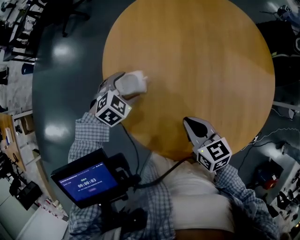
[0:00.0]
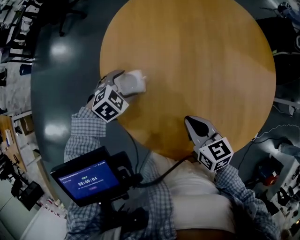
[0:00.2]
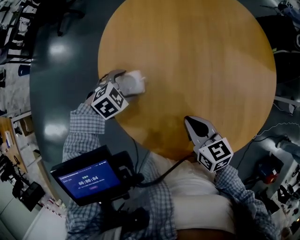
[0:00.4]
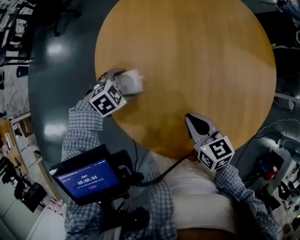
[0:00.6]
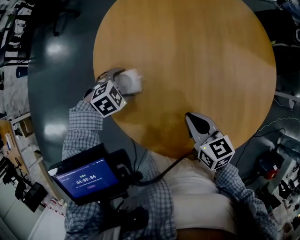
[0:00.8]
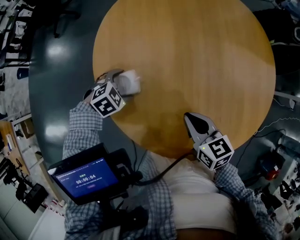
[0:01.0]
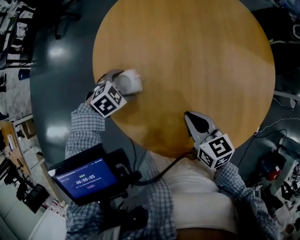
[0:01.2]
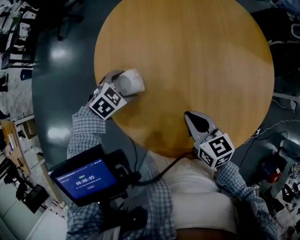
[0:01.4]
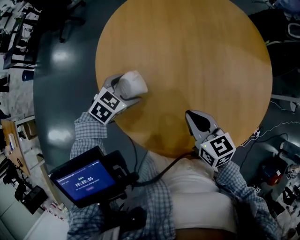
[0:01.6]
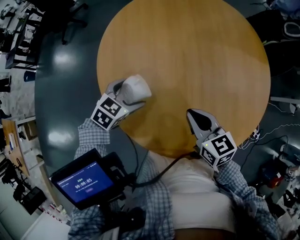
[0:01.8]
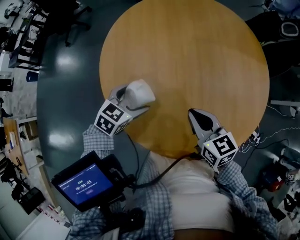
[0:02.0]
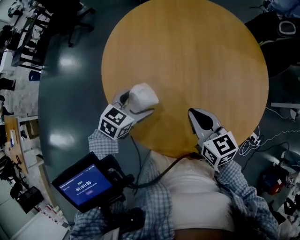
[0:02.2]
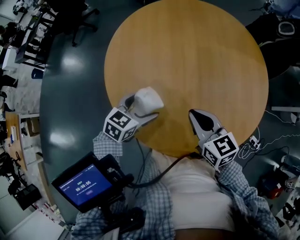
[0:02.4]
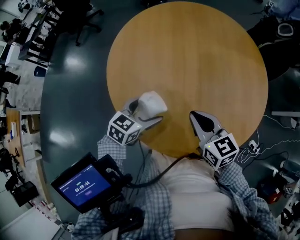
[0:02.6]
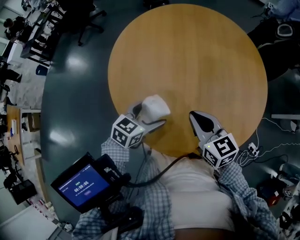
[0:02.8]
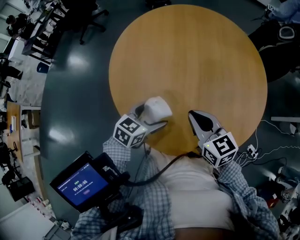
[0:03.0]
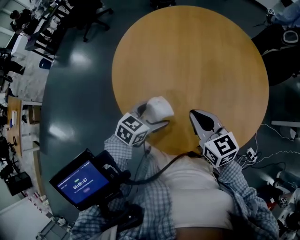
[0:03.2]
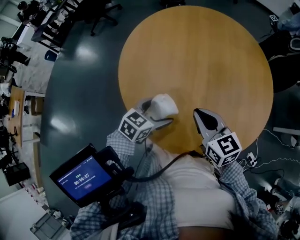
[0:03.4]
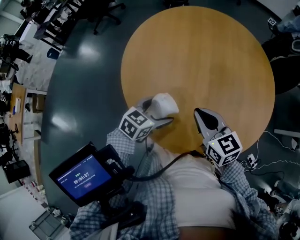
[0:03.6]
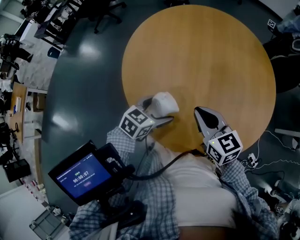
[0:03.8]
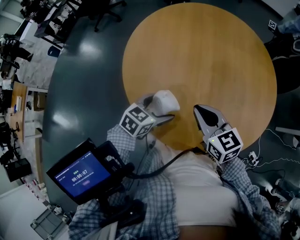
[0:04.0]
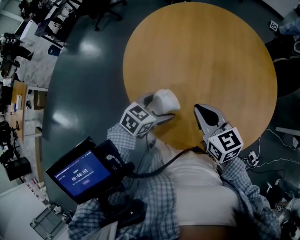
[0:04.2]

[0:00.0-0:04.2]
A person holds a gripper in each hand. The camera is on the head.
0:00.0 to 0:01.4: There are only small adjustments of the grippers.
0:01.4 to 0:02.8: The right gripper travels upward by about 5 cm. The left gripper moves to the right, backward and upward, about 20 cm, and changes its angle by some 40 degrees.
0:02.8 to 0:04.2: The grippers make only small movements.

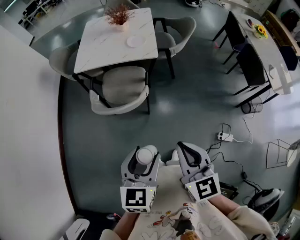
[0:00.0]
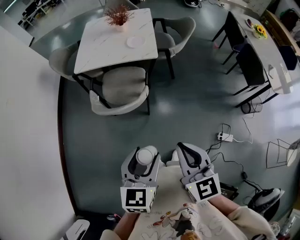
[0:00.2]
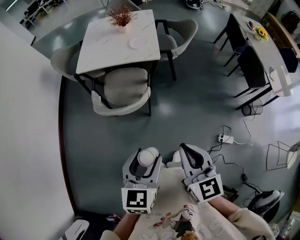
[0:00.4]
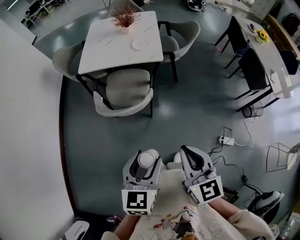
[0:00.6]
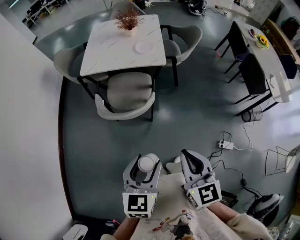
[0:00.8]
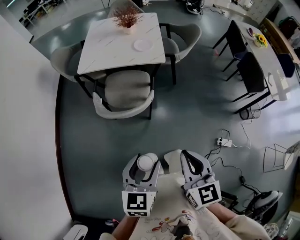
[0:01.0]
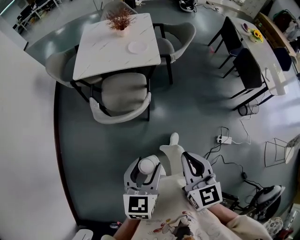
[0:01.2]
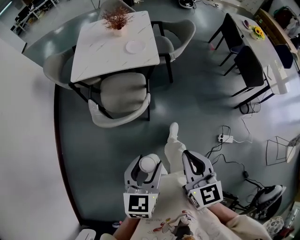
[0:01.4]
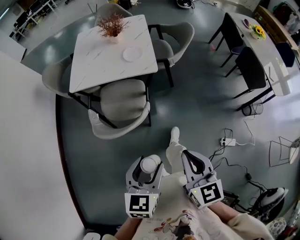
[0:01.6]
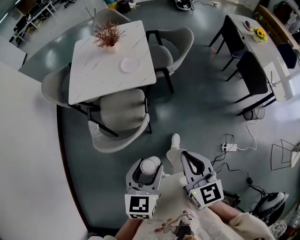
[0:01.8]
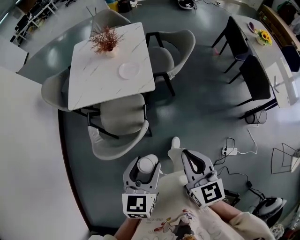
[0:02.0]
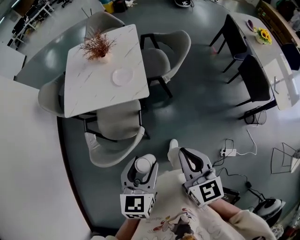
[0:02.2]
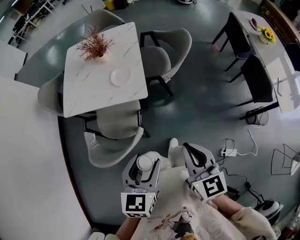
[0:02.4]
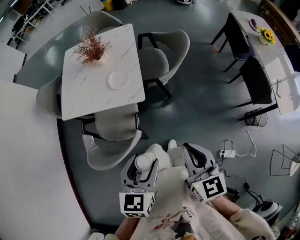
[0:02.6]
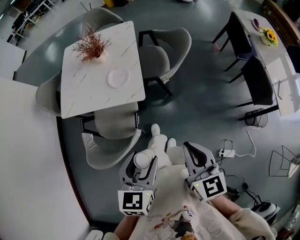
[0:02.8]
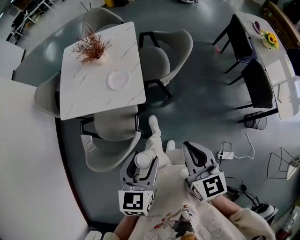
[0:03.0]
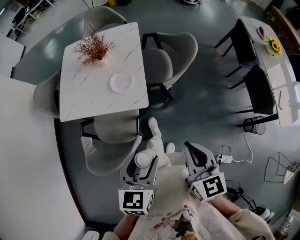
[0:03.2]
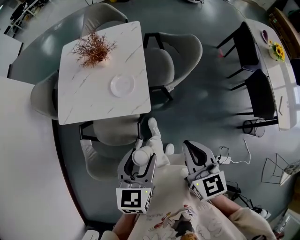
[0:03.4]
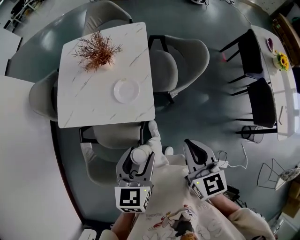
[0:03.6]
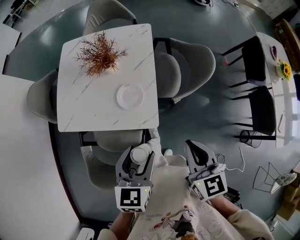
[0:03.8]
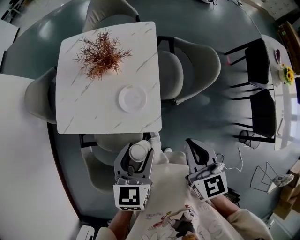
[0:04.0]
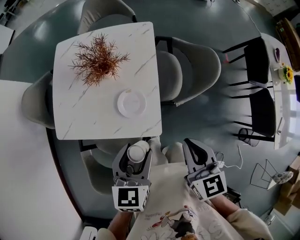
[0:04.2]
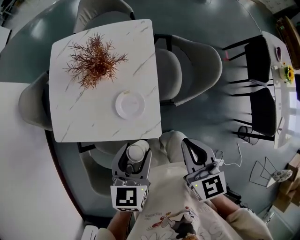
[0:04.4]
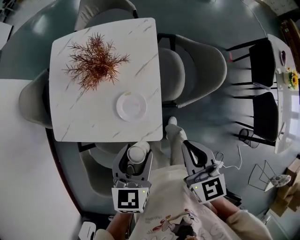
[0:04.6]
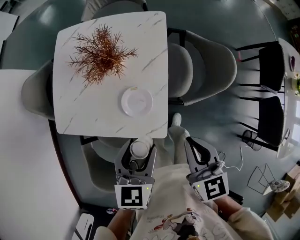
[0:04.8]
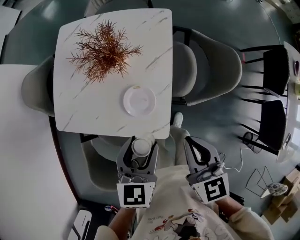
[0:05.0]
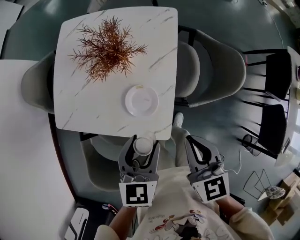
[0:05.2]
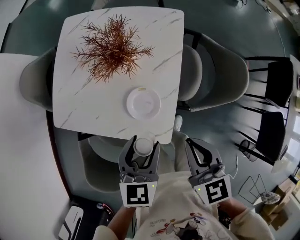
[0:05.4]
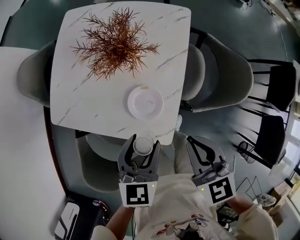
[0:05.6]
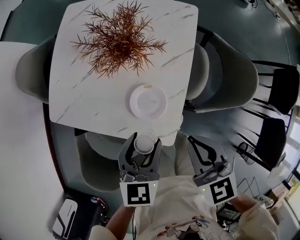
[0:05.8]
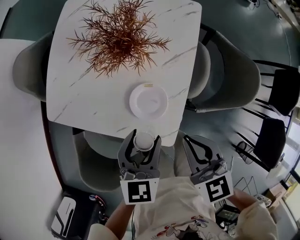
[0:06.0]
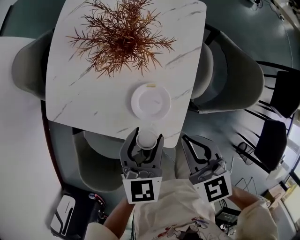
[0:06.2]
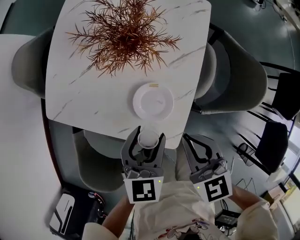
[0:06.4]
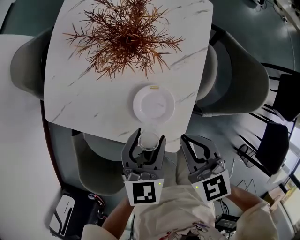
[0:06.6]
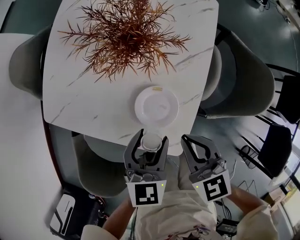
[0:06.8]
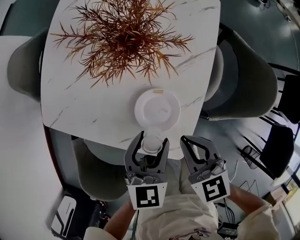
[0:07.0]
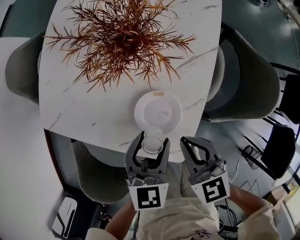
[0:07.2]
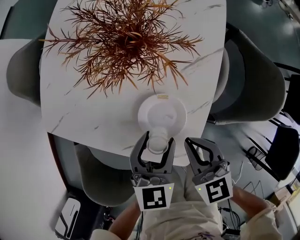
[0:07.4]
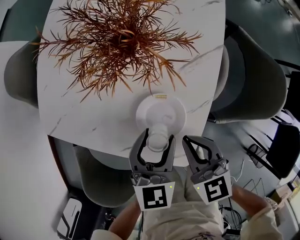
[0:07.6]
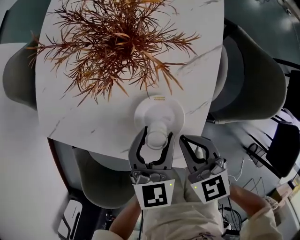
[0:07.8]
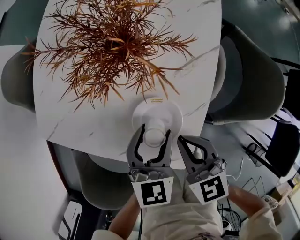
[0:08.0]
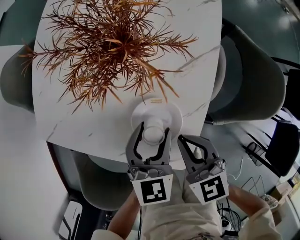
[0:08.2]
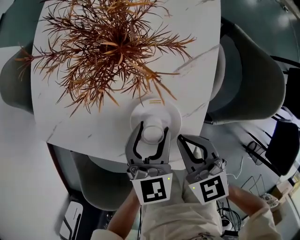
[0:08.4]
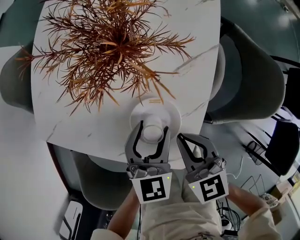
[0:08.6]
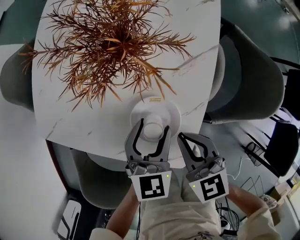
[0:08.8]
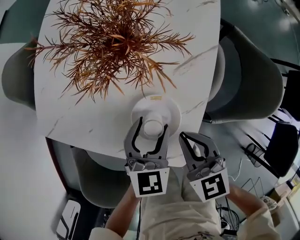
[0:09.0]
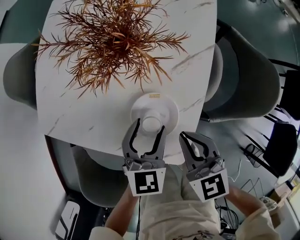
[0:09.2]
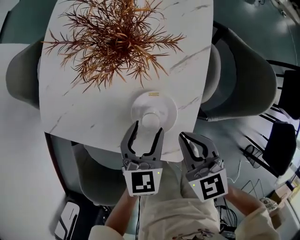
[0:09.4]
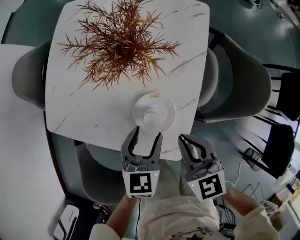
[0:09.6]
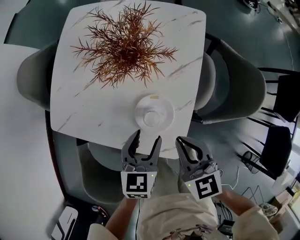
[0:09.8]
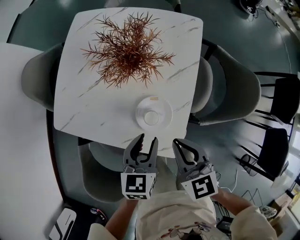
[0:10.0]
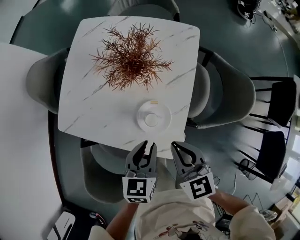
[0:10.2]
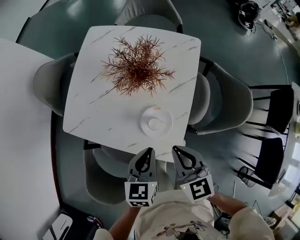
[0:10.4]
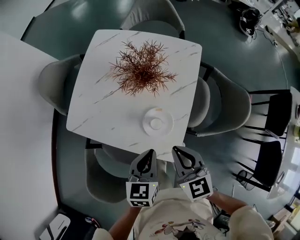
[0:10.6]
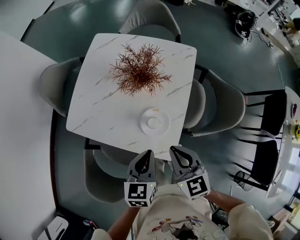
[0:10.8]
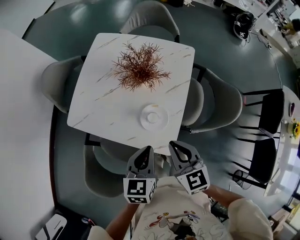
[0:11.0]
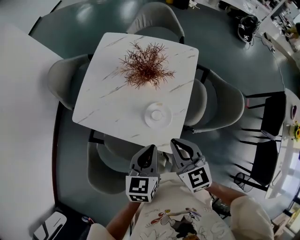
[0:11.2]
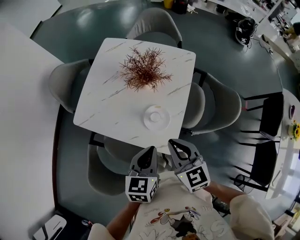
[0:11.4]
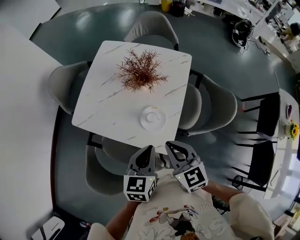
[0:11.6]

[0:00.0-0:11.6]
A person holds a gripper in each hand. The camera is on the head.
0:00.0 to 0:01.4: The left gripper moves about 5 cm.
0:01.4 to 0:02.8: The grippers both shift forward and to the right by some 35 cm.
0:02.8 to 0:04.4: The two grippers go approximately 30 cm forward.
0:04.4 to 0:05.8: The right gripper is displaced forward, downward and to the left by about 10 cm, and swivels approximately 20 degrees; the left gripper travels downward and forward by roughly 10 cm.
0:05.8 to 0:07.2: The two grippers go approximately 10 cm downward.
0:07.2 to 0:08.8: The left gripper changes place by approximately 5 cm.
0:08.8 to 0:10.2: The left gripper shifts roughly 15 cm upward and backward, and closes its fingers. Meanwhile the right gripper heads upward, covering approximately 15 cm.
0:10.2 to 0:11.6: Both grippers move upward and backward, some 10 cm.

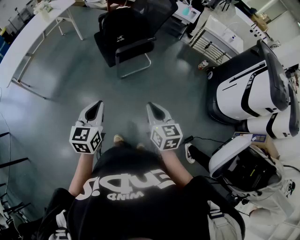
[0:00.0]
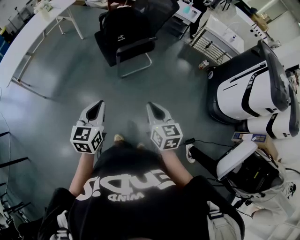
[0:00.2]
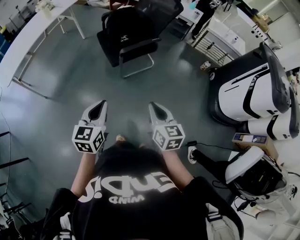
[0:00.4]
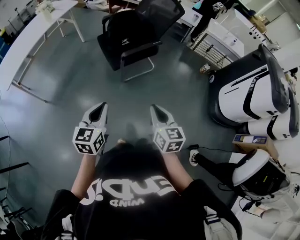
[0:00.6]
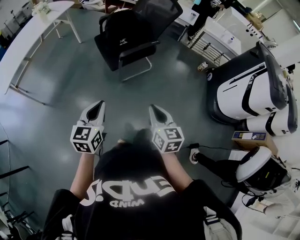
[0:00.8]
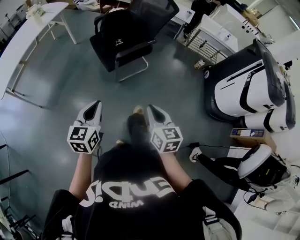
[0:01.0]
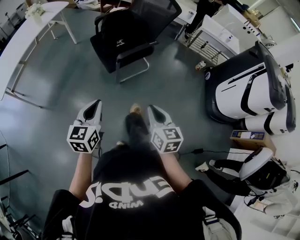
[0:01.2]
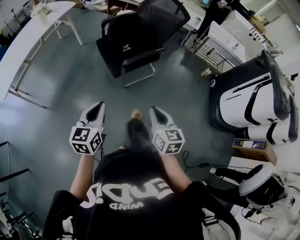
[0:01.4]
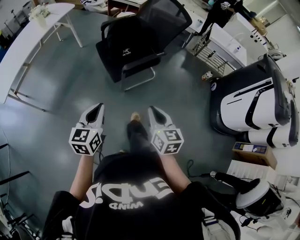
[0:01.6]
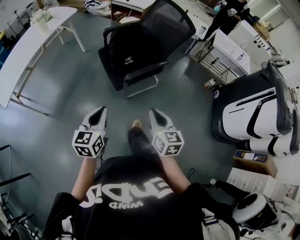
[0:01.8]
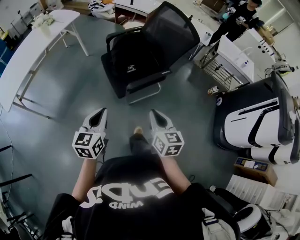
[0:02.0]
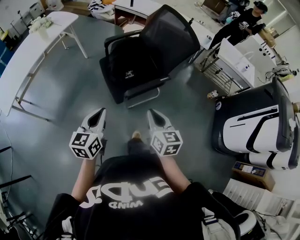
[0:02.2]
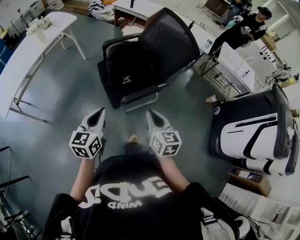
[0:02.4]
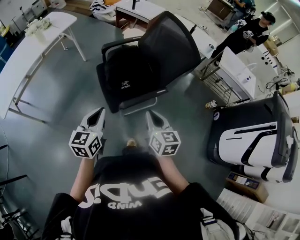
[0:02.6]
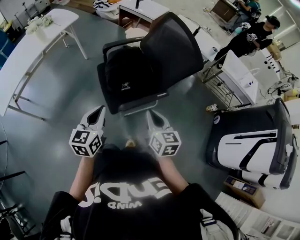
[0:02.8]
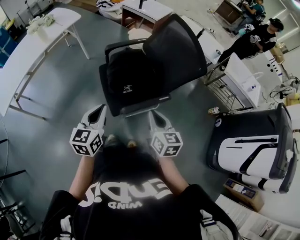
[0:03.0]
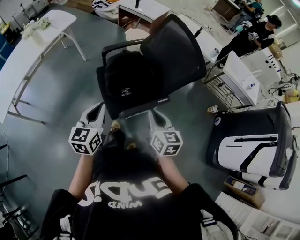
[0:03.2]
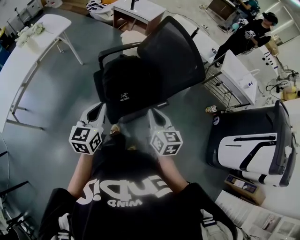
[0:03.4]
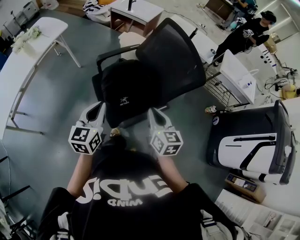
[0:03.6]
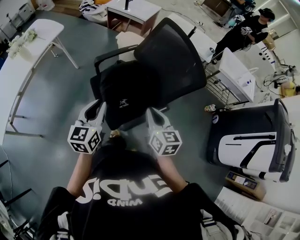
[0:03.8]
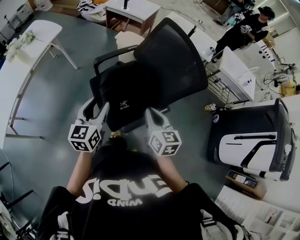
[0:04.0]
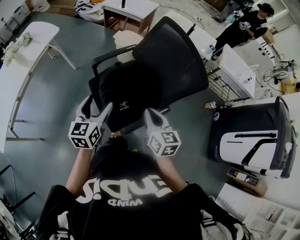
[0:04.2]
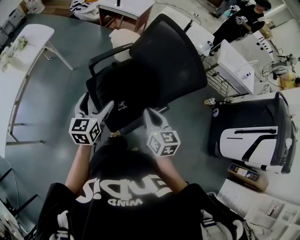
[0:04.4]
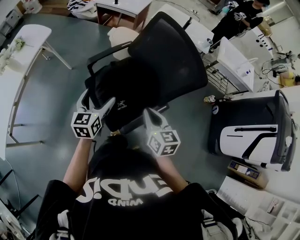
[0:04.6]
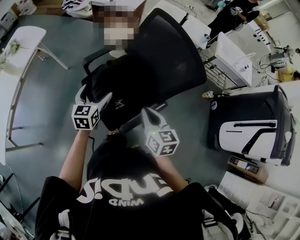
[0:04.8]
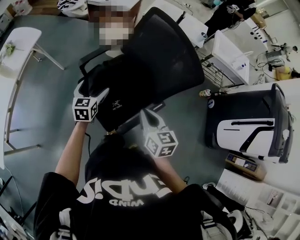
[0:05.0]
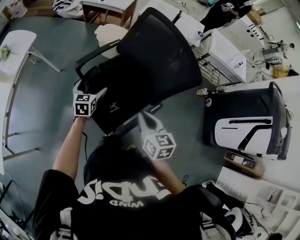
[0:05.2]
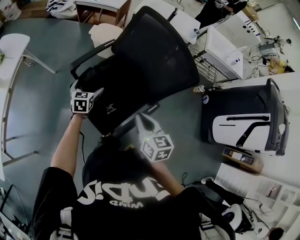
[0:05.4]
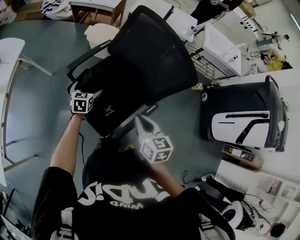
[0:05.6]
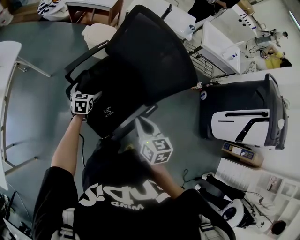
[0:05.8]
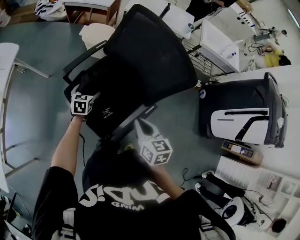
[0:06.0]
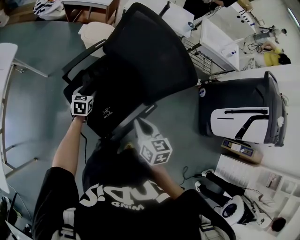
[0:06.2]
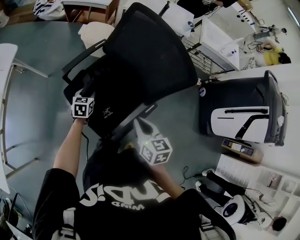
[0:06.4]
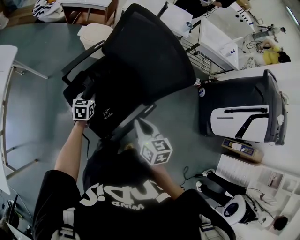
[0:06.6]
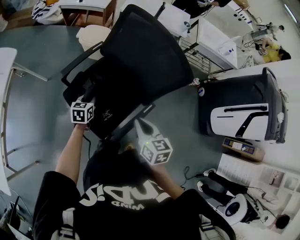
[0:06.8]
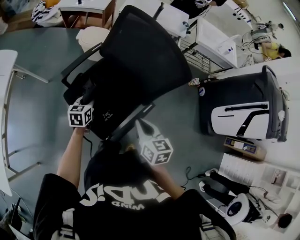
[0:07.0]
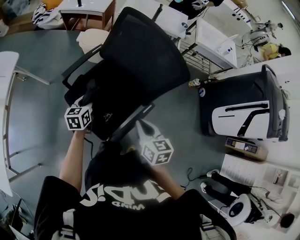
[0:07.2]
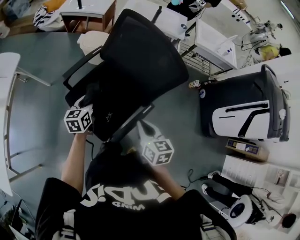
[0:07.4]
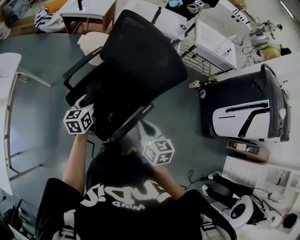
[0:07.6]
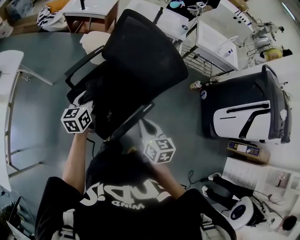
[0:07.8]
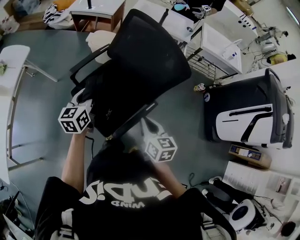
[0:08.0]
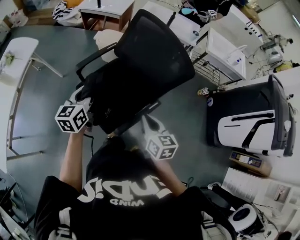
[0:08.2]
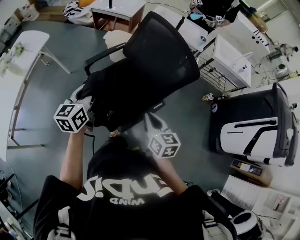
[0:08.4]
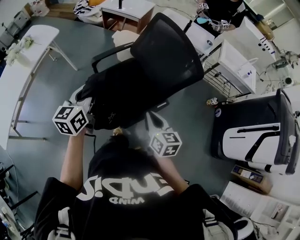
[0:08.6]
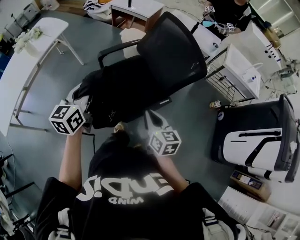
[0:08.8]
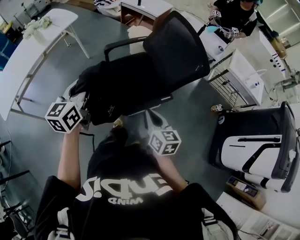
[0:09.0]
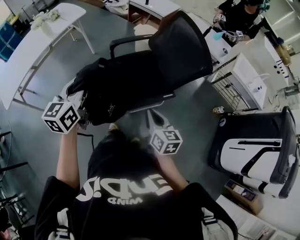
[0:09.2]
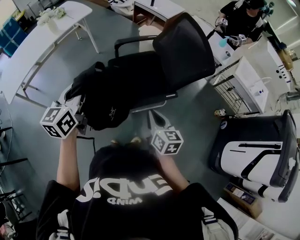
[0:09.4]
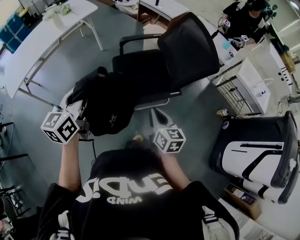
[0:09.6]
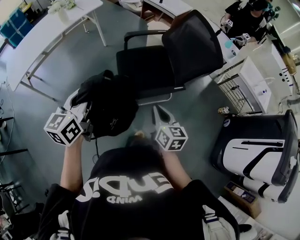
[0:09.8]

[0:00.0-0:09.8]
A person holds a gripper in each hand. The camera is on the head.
0:00.0 to 0:01.4: The two grippers go approximately 15 cm forward and to the left.
0:01.4 to 0:02.8: The two grippers go roughly 40 cm forward.
0:02.8 to 0:04.2: The grippers both shift forward by about 20 cm. The left gripper opens its fingers.
0:04.2 to 0:05.6: The left gripper moves downward and forward, roughly 30 cm, changes its angle by some 30 degrees, and opens up. The right gripper shifts by roughly 5 cm.
0:05.6 to 0:07.0: The left gripper moves approximately 5 cm, and closes.
0:07.0 to 0:08.4: The right gripper shifts roughly 5 cm backward. Meanwhile the left gripper is displaced upward and backward by some 25 cm, and turns by some 30 degrees.
0:08.4 to 0:09.8: The right gripper is displaced backward by approximately 20 cm, while the left gripper is displaced backward by roughly 35 cm.
